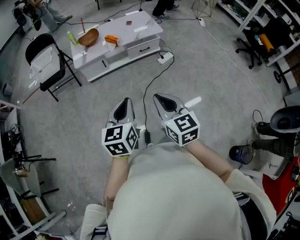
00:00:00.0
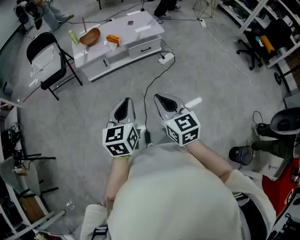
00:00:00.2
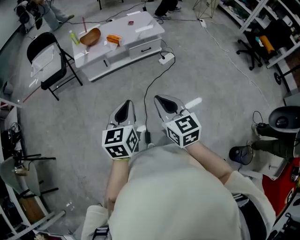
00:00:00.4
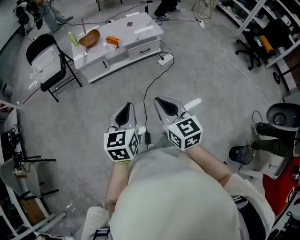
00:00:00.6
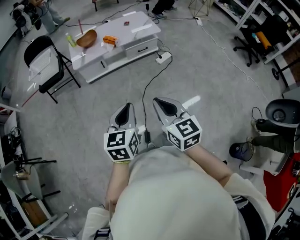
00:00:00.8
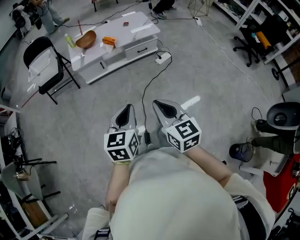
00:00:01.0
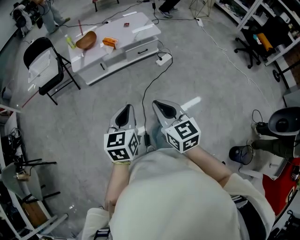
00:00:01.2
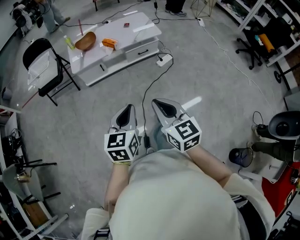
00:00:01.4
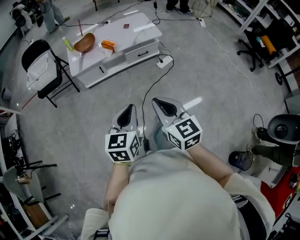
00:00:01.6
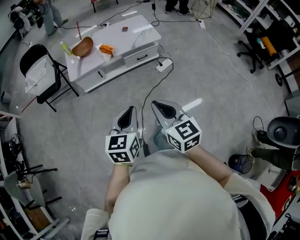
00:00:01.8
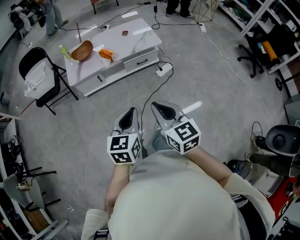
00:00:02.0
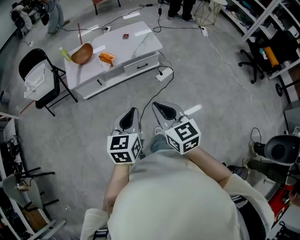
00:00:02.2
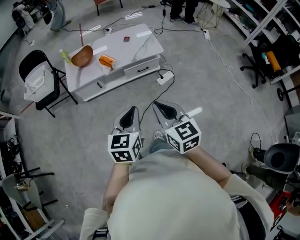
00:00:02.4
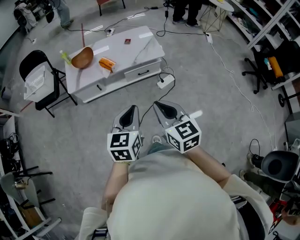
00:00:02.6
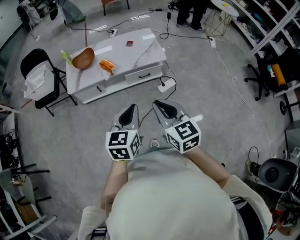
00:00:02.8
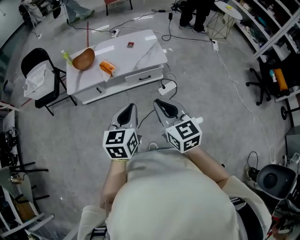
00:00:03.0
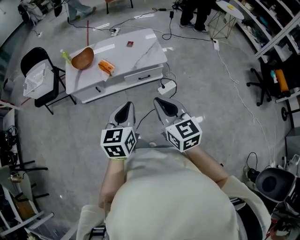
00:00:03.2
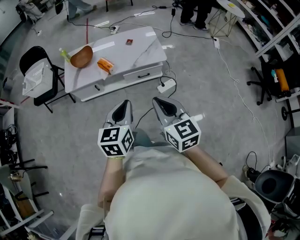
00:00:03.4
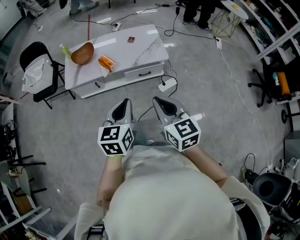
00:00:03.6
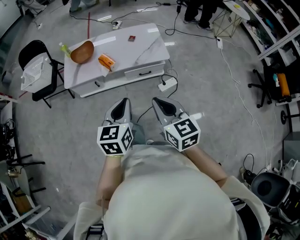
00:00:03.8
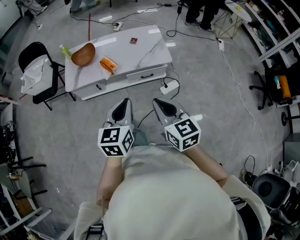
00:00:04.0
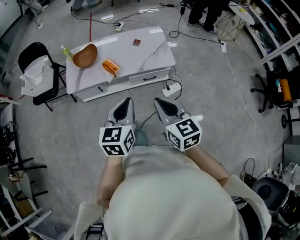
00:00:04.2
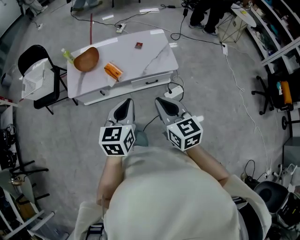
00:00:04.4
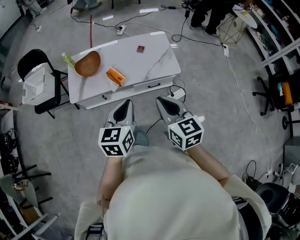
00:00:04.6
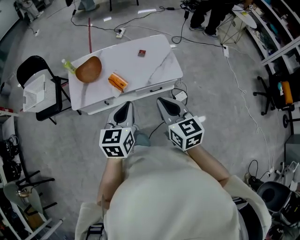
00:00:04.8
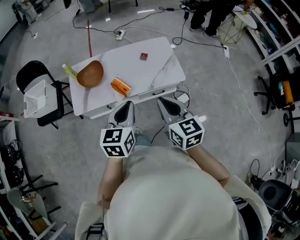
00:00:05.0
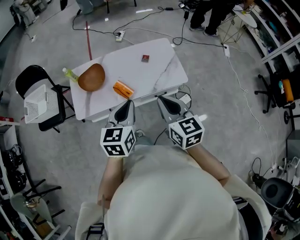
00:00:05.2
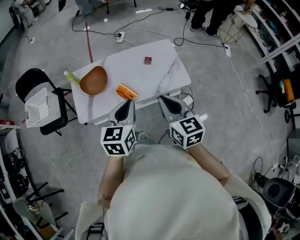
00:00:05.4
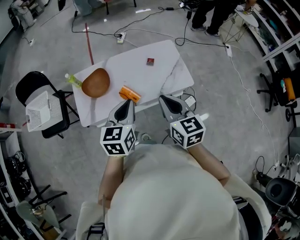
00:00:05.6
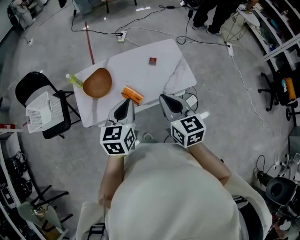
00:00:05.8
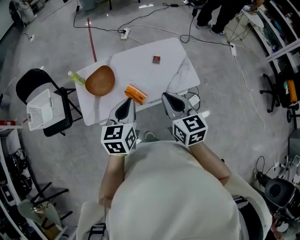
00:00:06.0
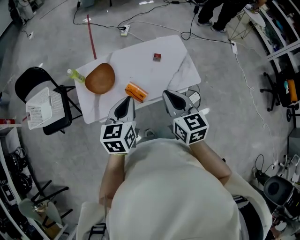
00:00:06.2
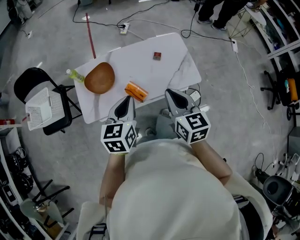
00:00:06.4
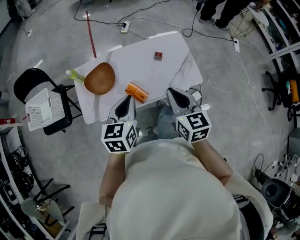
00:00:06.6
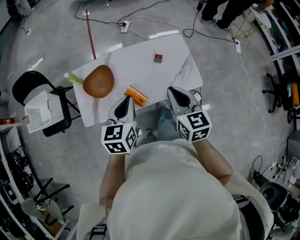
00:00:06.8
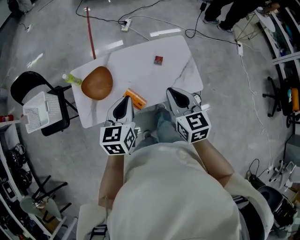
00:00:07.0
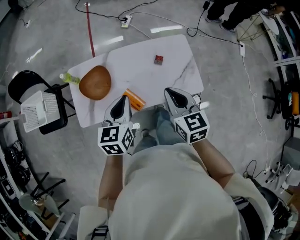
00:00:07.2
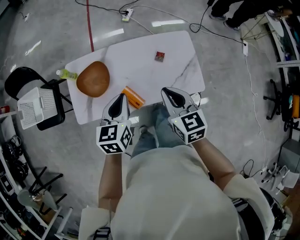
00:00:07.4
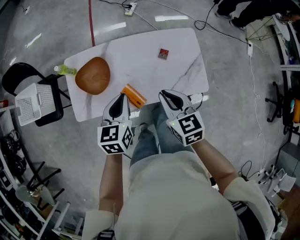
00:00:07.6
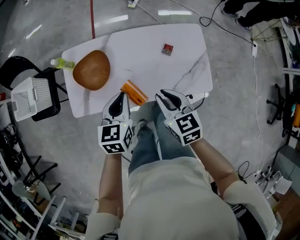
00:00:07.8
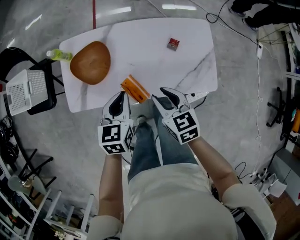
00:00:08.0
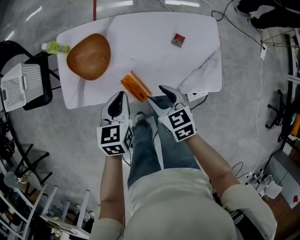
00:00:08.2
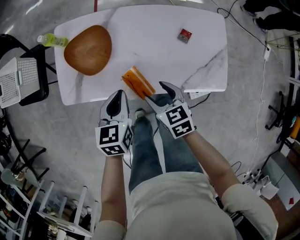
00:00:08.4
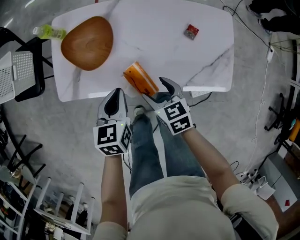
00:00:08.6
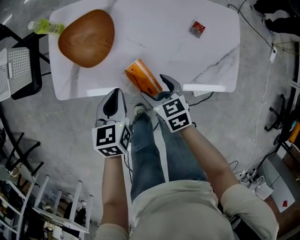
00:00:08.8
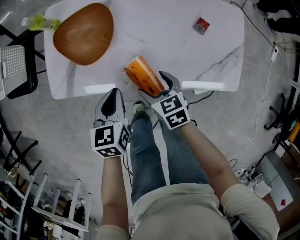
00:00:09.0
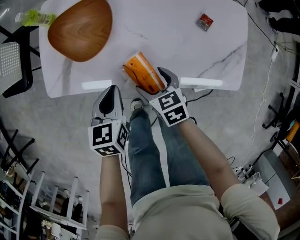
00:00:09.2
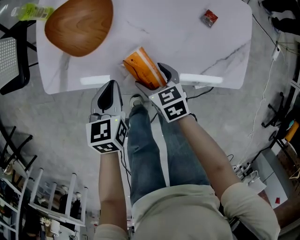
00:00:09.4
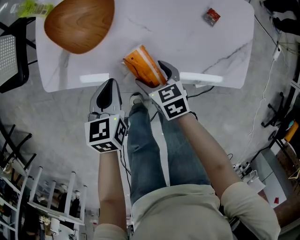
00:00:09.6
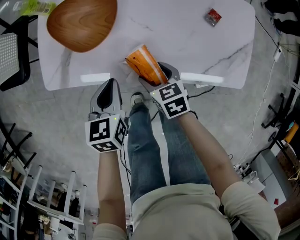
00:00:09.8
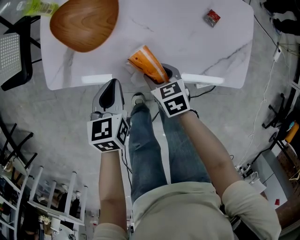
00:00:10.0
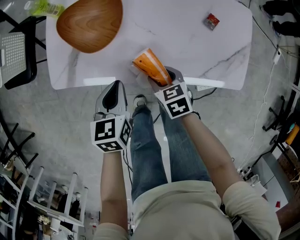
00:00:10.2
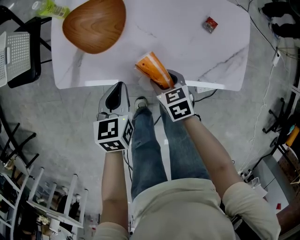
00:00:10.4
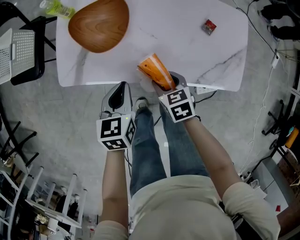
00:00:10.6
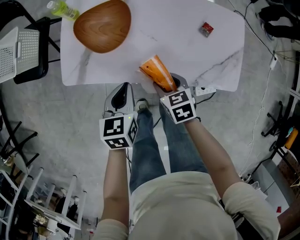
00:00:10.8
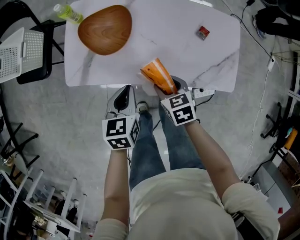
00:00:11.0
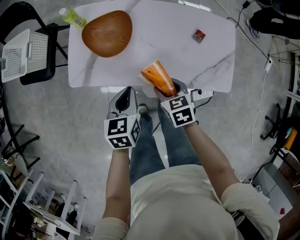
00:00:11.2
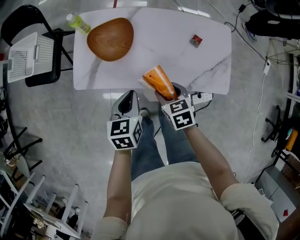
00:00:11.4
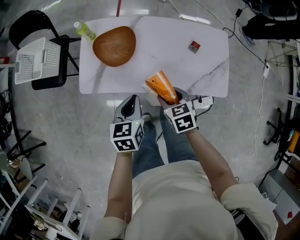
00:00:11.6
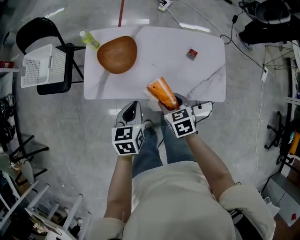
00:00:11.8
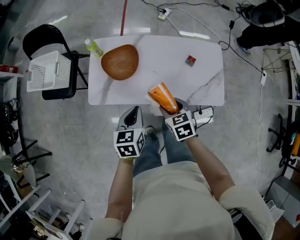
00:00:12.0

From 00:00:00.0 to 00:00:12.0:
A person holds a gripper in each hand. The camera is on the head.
From 00:00:00.0 to 00:00:01.6: Both grippers travel together forward, some 5 cm.
From 00:00:01.6 to 00:00:03.0: Both grippers travel together forward and to the right, some 30 cm.
From 00:00:03.0 to 00:00:04.4: Both grippers move forward, some 15 cm.
From 00:00:04.4 to 00:00:06.0: Both grippers move forward and to the left, approximately 30 cm.
From 00:00:06.0 to 00:00:07.6: Both grippers travel together forward and downward, some 20 cm.
From 00:00:07.6 to 00:00:09.0: The left gripper shifts roughly 25 cm downward and to the left; the right gripper is displaced downward by roughly 30 cm, rotates roughly 30 degrees, and opens its fingers.
From 00:00:09.0 to 00:00:10.4: The right gripper closes up.
From 00:00:10.4 to 00:00:12.0: Both grippers move upward, approximately 20 cm.

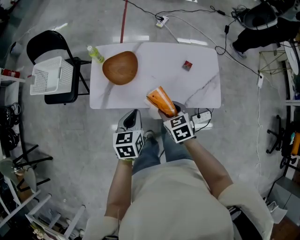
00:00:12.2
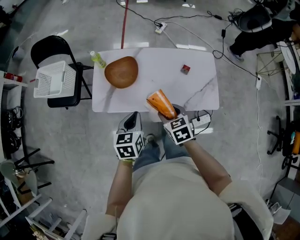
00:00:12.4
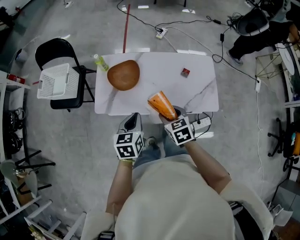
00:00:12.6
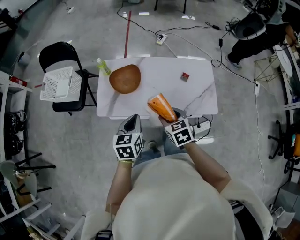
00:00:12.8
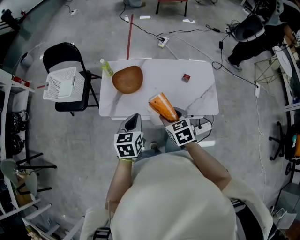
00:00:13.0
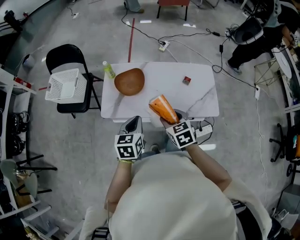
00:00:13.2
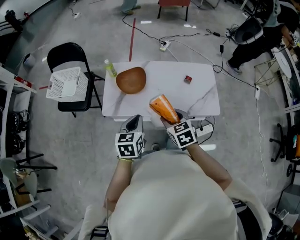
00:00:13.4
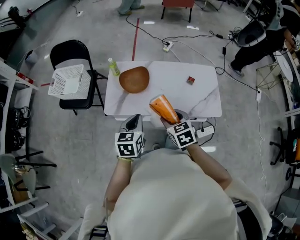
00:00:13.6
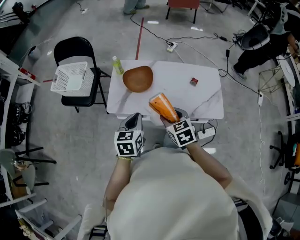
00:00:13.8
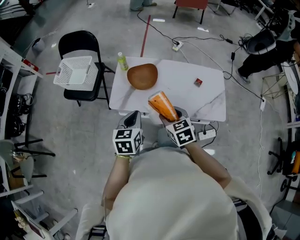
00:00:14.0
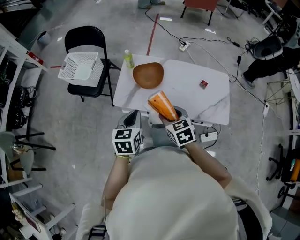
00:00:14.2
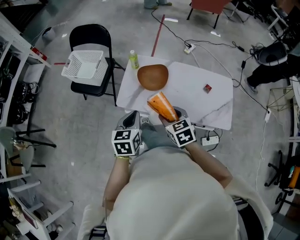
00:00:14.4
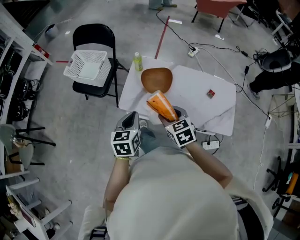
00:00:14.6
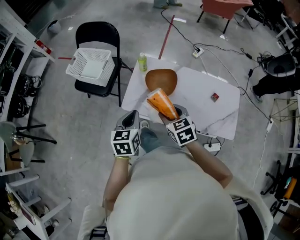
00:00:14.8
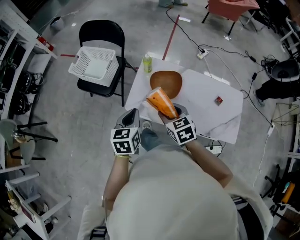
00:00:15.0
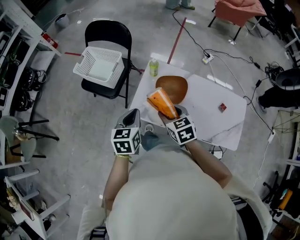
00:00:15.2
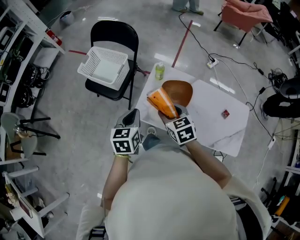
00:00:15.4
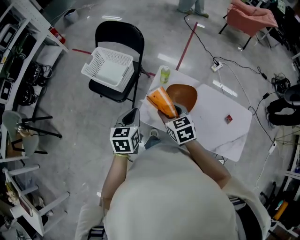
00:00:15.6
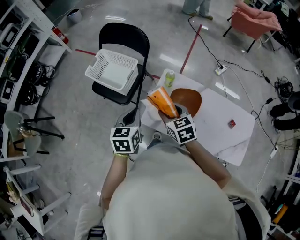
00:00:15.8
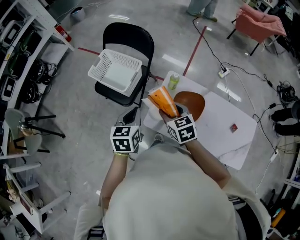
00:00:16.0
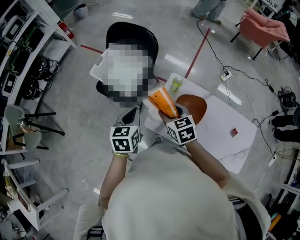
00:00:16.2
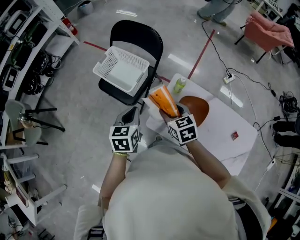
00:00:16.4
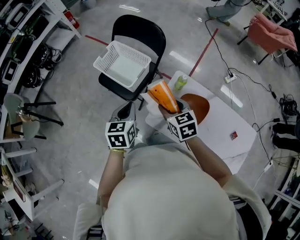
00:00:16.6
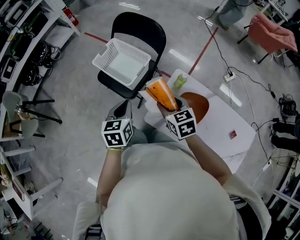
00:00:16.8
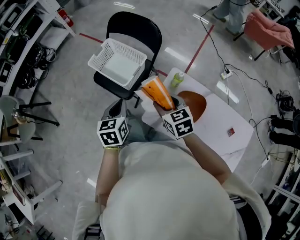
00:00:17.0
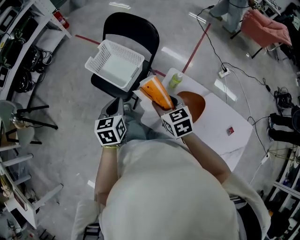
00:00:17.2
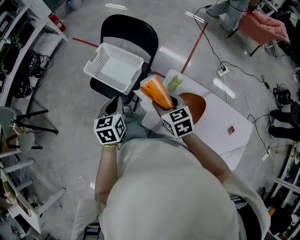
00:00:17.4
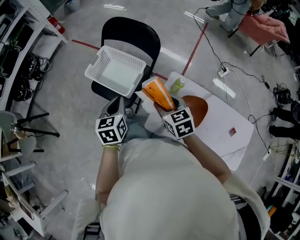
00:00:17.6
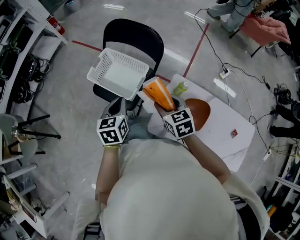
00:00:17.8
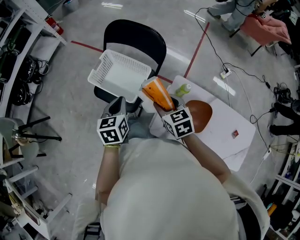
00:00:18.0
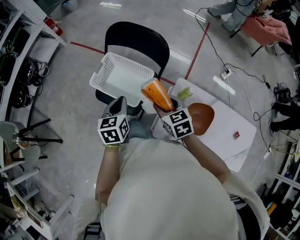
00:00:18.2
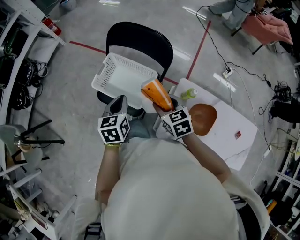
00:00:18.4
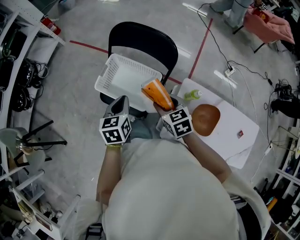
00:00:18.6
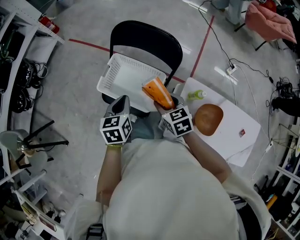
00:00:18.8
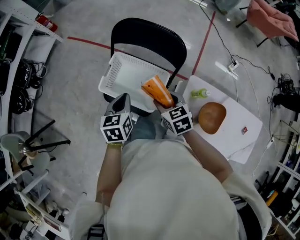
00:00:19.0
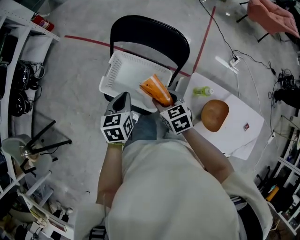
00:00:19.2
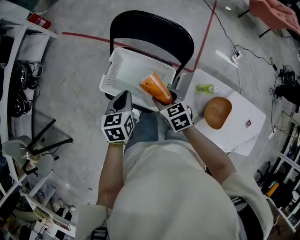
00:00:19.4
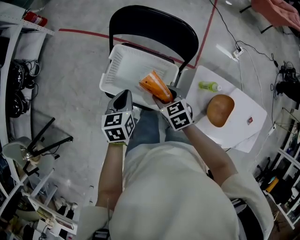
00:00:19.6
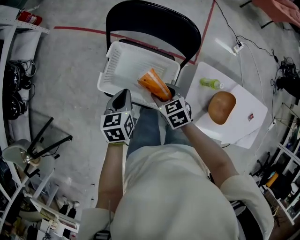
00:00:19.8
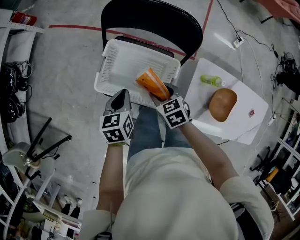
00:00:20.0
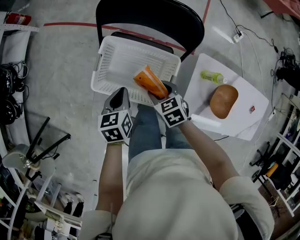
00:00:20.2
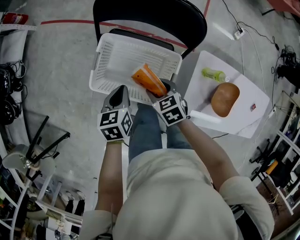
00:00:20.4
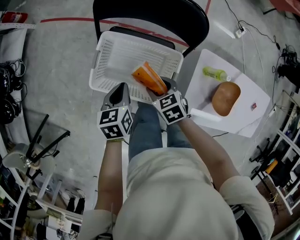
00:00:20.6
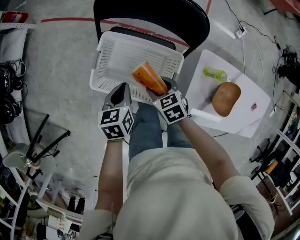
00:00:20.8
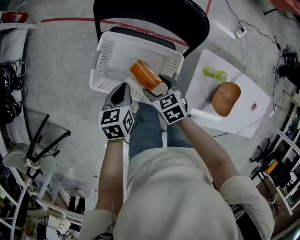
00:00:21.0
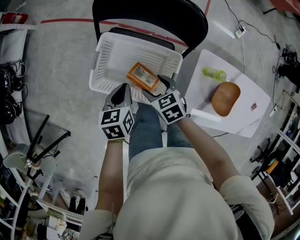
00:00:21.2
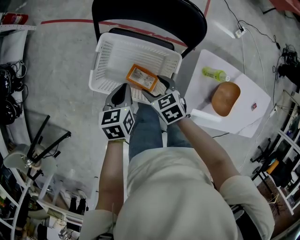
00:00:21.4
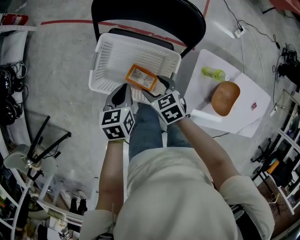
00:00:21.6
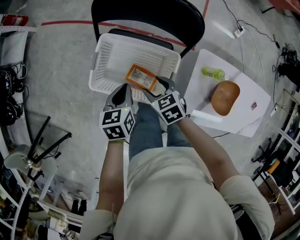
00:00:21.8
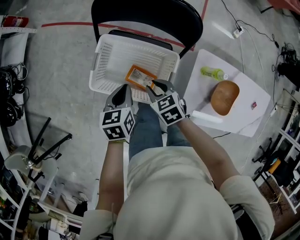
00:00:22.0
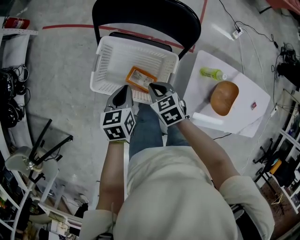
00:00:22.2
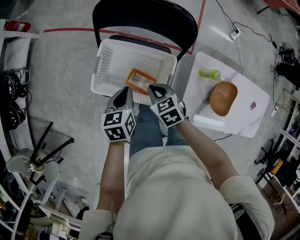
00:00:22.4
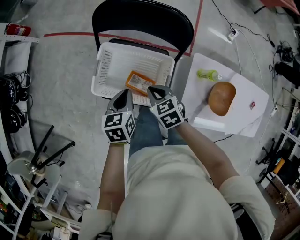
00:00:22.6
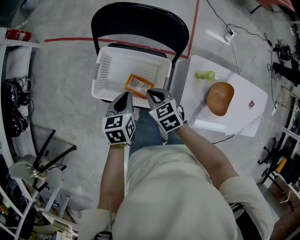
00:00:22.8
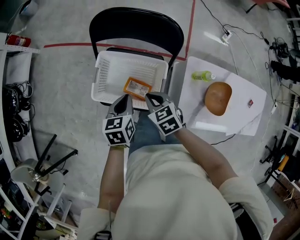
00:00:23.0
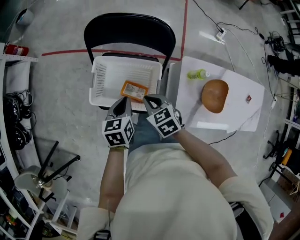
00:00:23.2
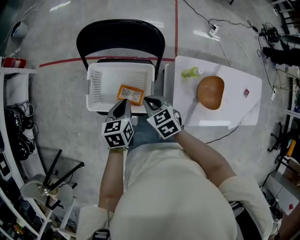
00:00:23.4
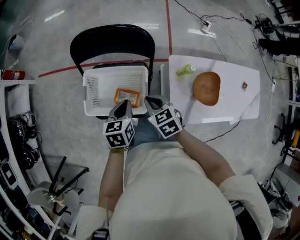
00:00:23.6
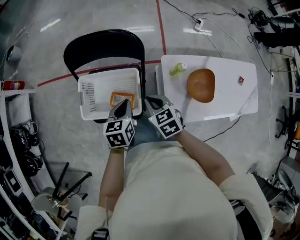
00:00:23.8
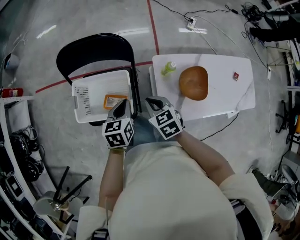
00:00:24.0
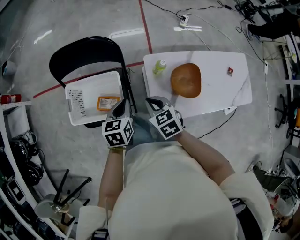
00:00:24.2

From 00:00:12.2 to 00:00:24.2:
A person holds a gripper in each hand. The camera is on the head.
From 00:00:12.2 to 00:00:13.8: The left gripper heads to the left, upward and backward, covering about 10 cm. The right gripper travels upward, to the left and backward by roughly 15 cm.
From 00:00:13.8 to 00:00:15.2: The left gripper heads to the left and forward, covering about 20 cm, while the right gripper goes some 25 cm forward and to the left.
From 00:00:15.2 to 00:00:16.6: Both grippers move forward and to the left, approximately 20 cm.
From 00:00:16.6 to 00:00:18.2: The left gripper shifts roughly 20 cm forward. The right gripper moves forward and to the left, approximately 15 cm.
From 00:00:18.2 to 00:00:19.8: The right gripper travels downward, forward and to the left by about 20 cm; the left gripper moves forward, downward and to the left, approximately 20 cm.
From 00:00:19.8 to 00:00:21.2: Both grippers move downward, roughly 5 cm.
From 00:00:21.2 to 00:00:22.6: The right gripper closes its fingers.
From 00:00:22.6 to 00:00:24.2: The left gripper goes roughly 20 cm to the right, and swivels about 20 degrees; the right gripper moves to the right, backward and upward, approximately 25 cm, and rotates some 20 degrees.
